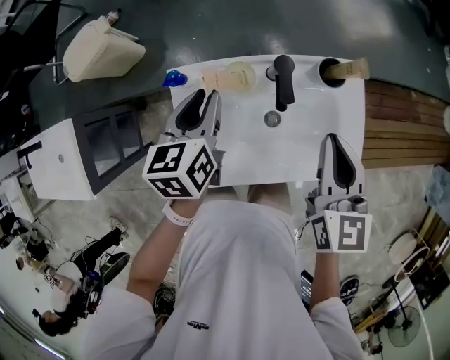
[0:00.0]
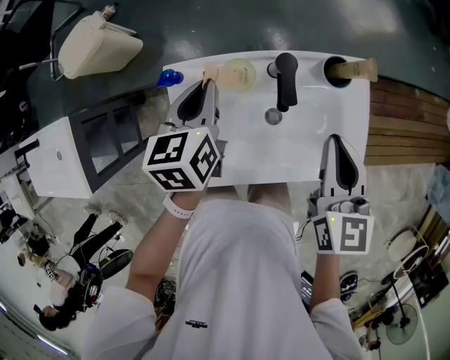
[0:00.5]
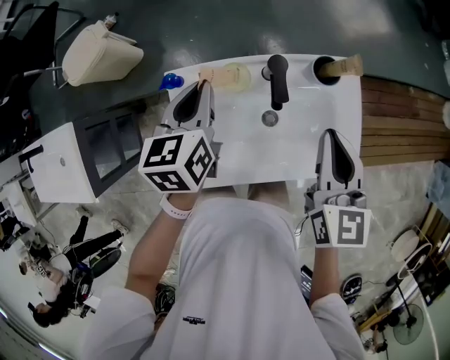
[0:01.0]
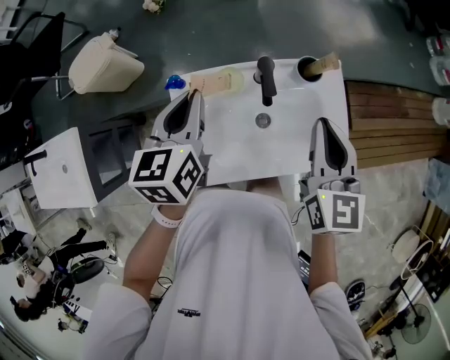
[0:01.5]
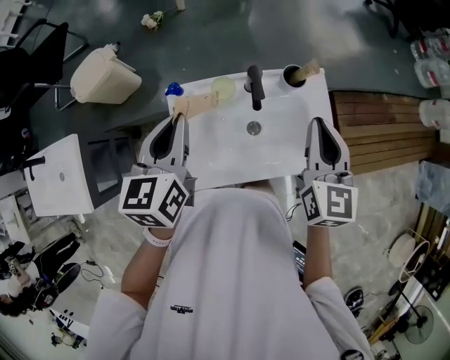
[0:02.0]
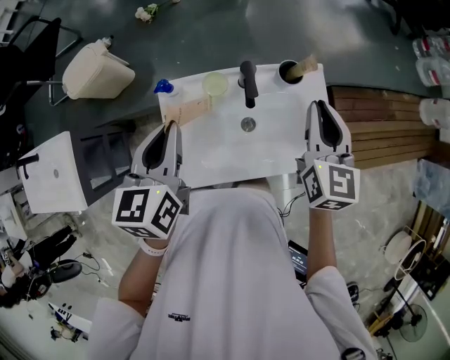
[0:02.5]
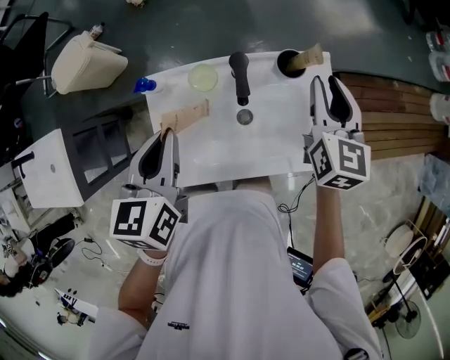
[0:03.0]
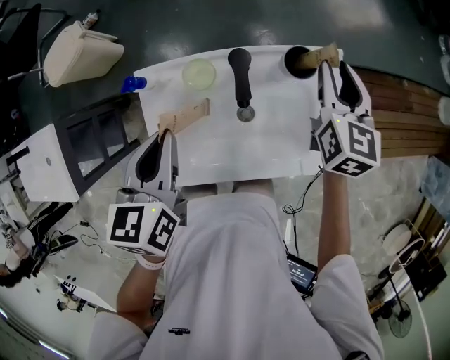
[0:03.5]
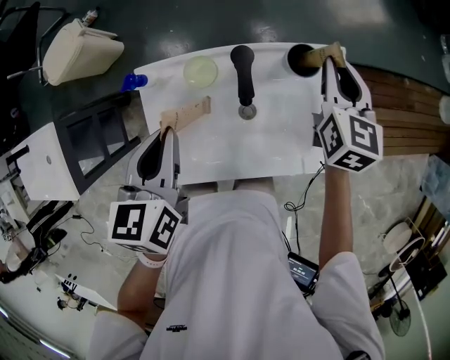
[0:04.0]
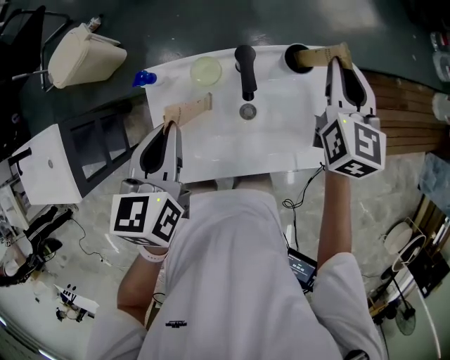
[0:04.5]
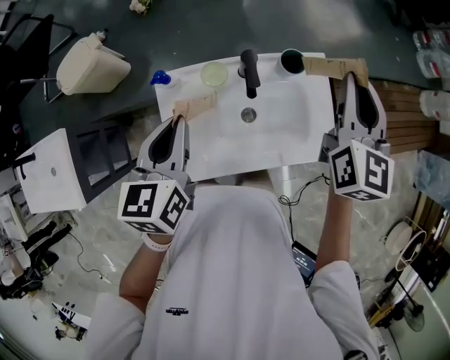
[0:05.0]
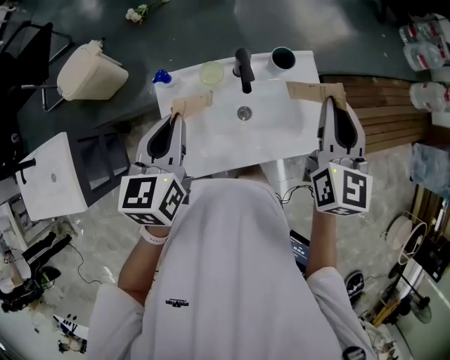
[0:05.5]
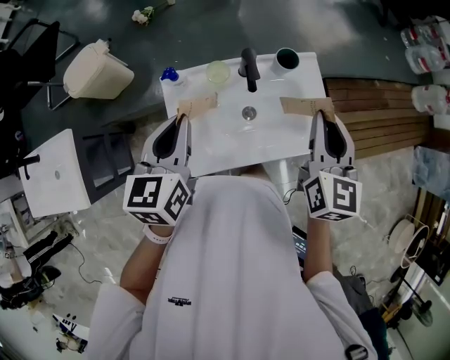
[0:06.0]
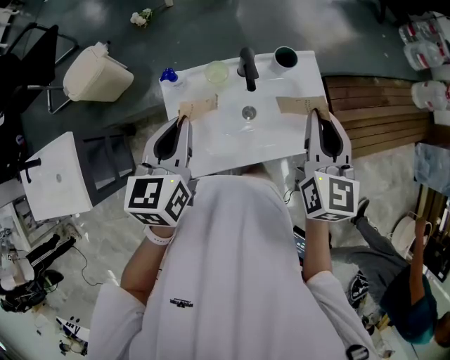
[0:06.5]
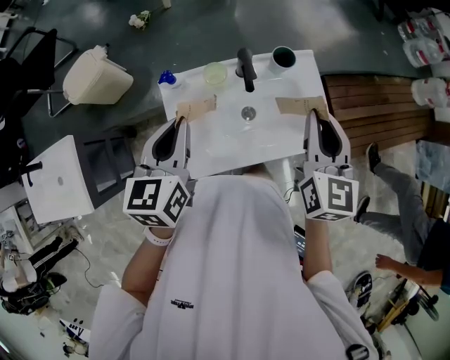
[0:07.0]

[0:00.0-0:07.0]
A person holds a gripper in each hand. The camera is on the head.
0:00.0 to 0:02.0: The left gripper travels upward and backward by about 15 cm, and closes its fingers; the right gripper shifts about 10 cm upward.
0:02.0 to 0:03.5: The right gripper travels forward and downward by about 20 cm, and opens its fingers, while the left gripper goes about 10 cm downward.
0:03.5 to 0:05.0: The left gripper goes about 5 cm upward. The right gripper heads upward and backward, covering roughly 20 cm.
0:05.0 to 0:07.0: The right gripper moves backward, approximately 15 cm.

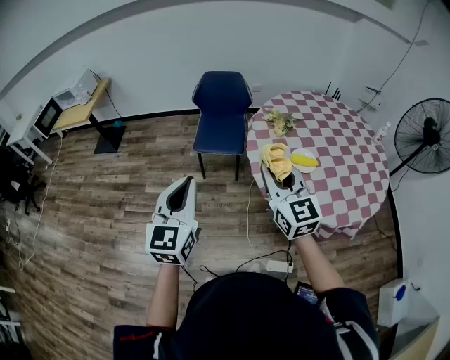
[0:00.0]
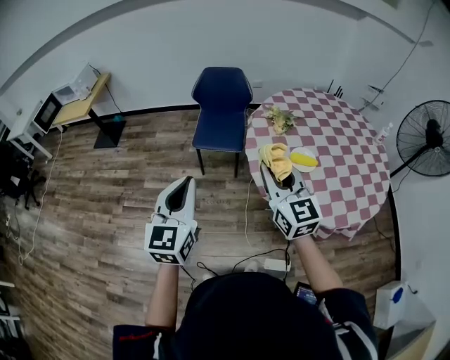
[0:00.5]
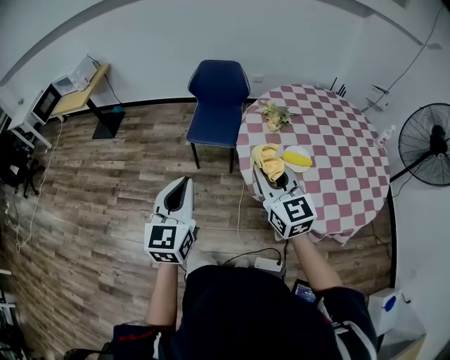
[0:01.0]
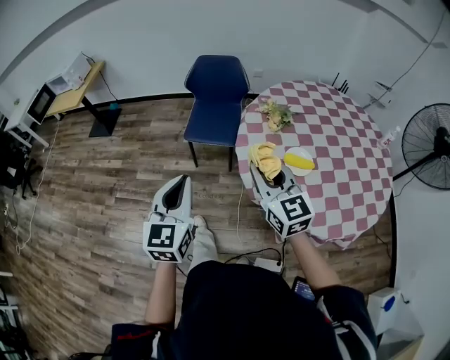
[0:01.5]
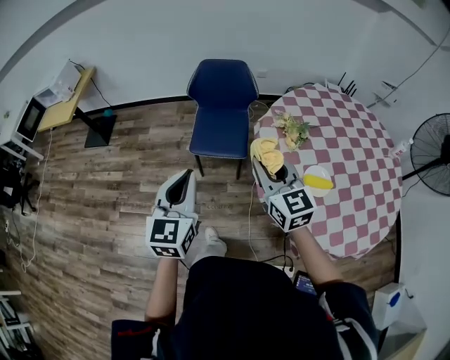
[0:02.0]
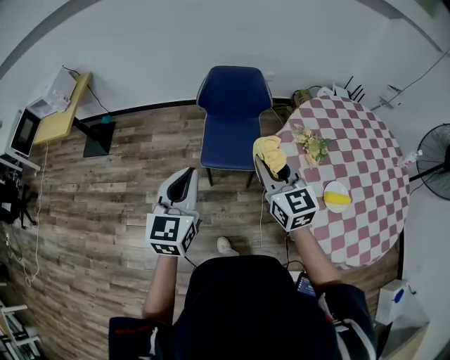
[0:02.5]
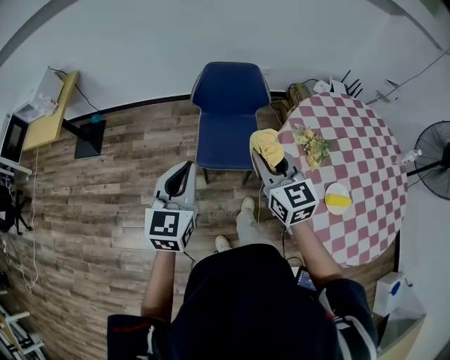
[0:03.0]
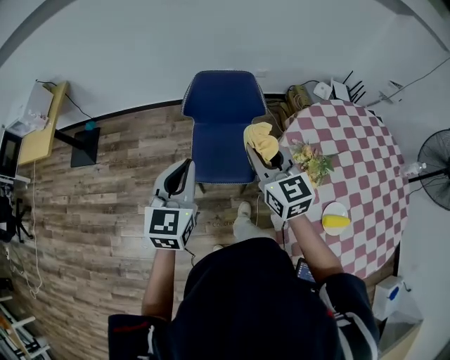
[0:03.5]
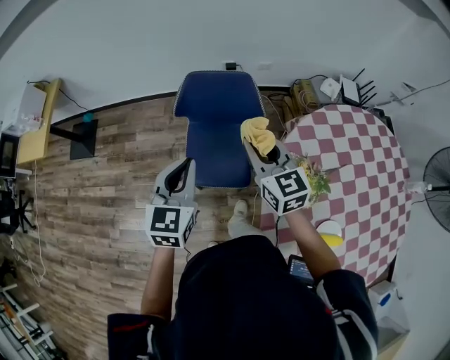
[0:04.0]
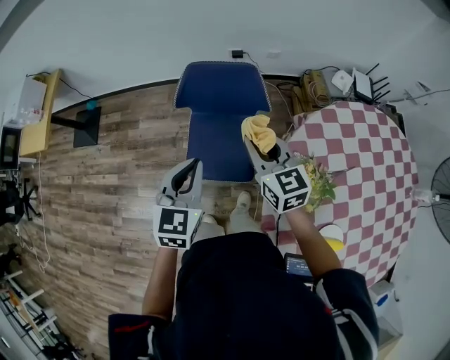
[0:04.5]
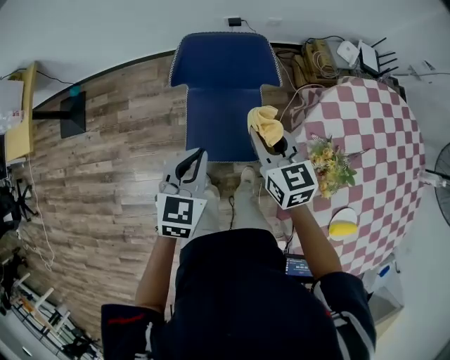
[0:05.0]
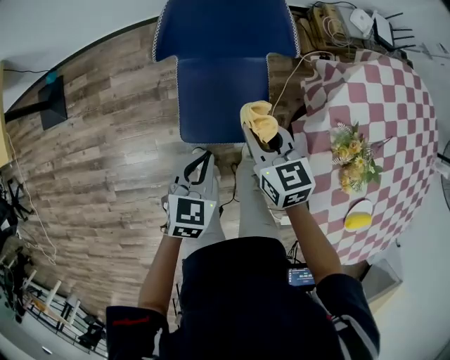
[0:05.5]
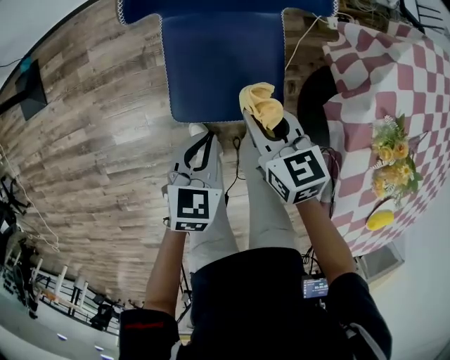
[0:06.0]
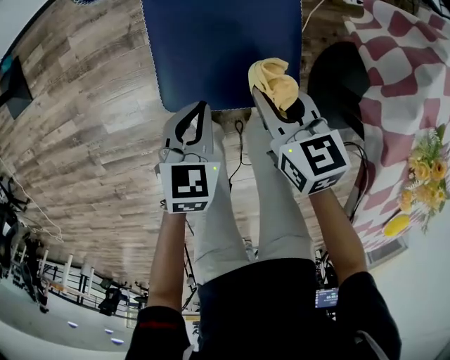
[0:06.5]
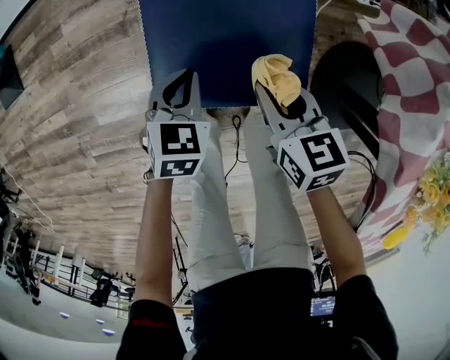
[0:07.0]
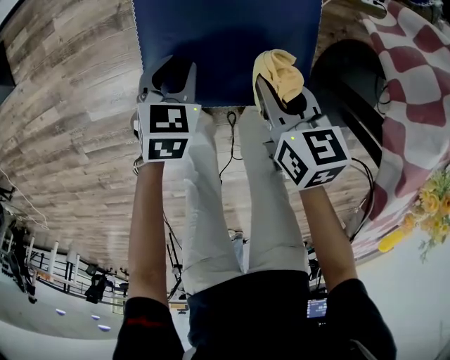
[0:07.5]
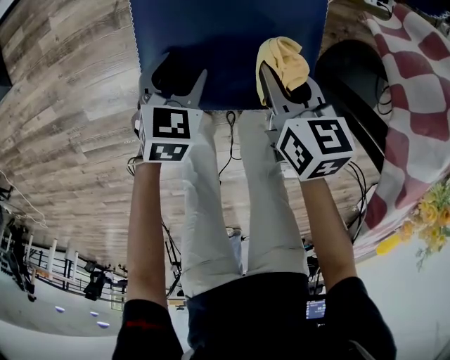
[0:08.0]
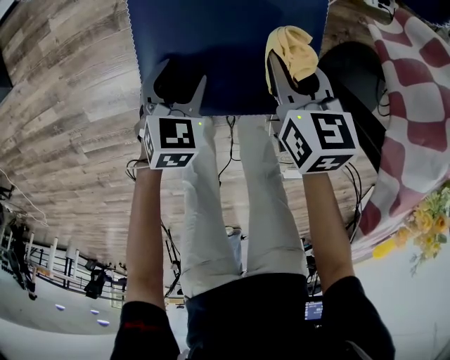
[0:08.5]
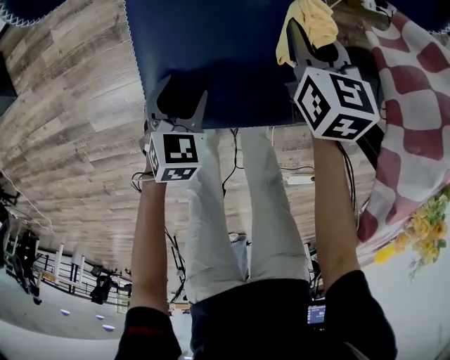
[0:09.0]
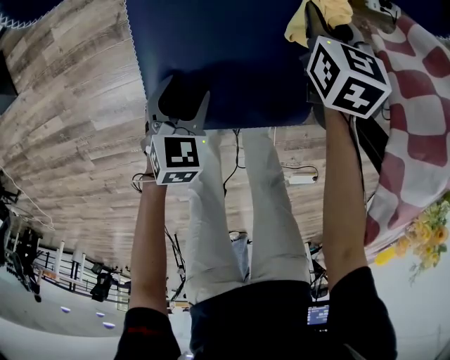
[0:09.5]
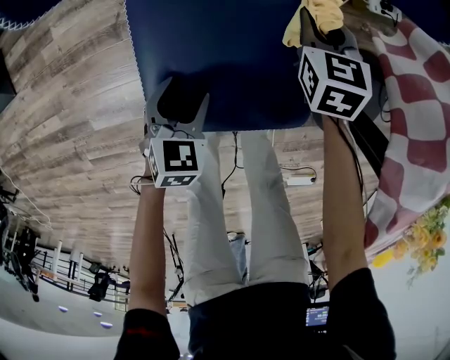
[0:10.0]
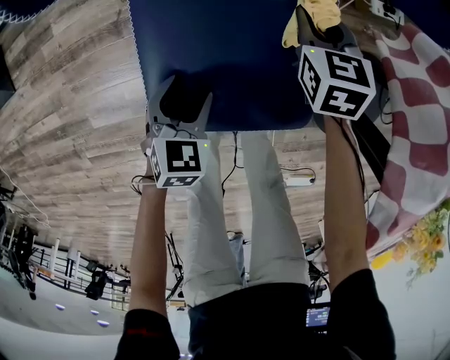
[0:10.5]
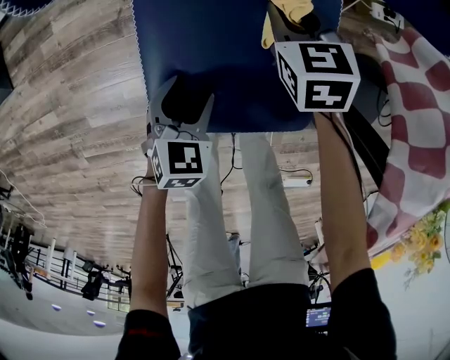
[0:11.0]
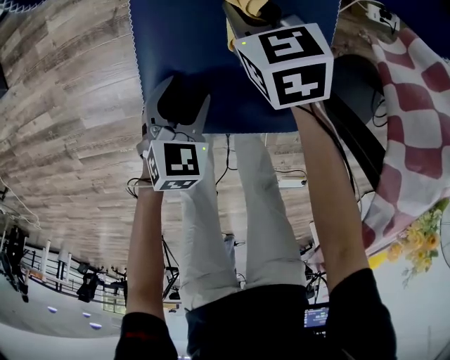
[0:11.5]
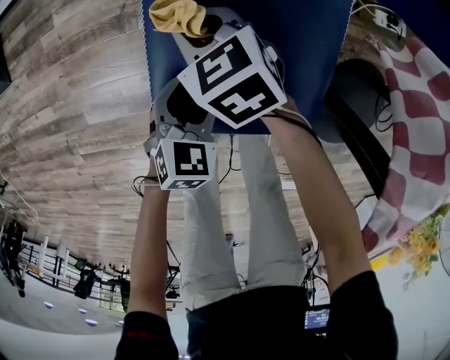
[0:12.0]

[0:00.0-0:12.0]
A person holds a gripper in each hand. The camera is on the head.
0:00.0 to 0:02.0: The grippers both shift forward by approximately 25 cm.
0:02.0 to 0:04.0: Both grippers move forward, about 40 cm.
0:04.0 to 0:06.0: The two grippers go approximately 35 cm downward. The left gripper changes its angle by about 30 degrees. Meanwhile the right gripper turns by roughly 30 degrees.
0:06.0 to 0:08.0: The grippers both shift downward by about 20 cm. The left gripper opens its fingers.
0:08.0 to 0:10.0: The right gripper is displaced forward by about 15 cm, and changes its angle by roughly 30 degrees.
0:10.0 to 0:12.0: The right gripper changes place by approximately 25 cm, and changes its angle by some 40 degrees.

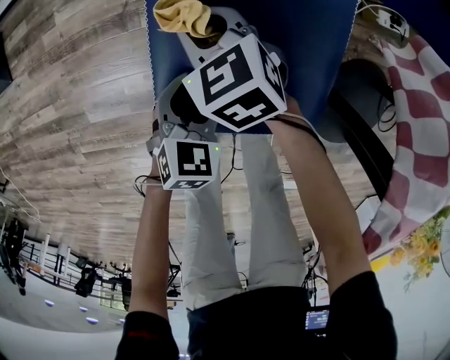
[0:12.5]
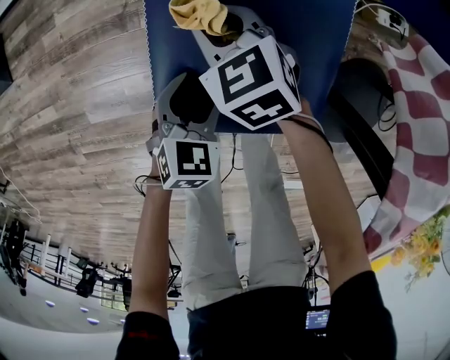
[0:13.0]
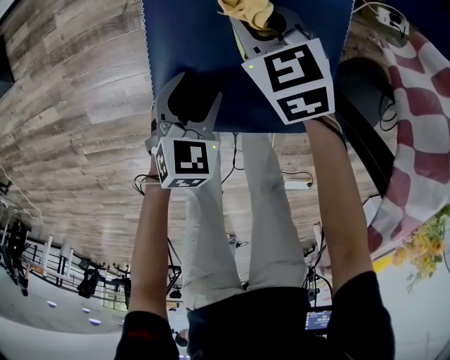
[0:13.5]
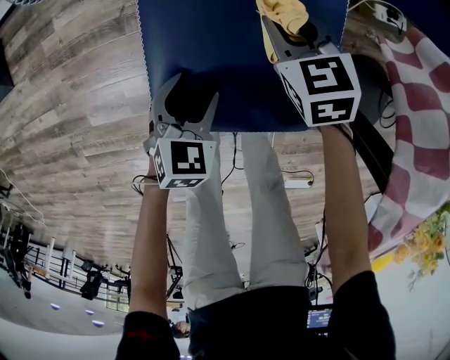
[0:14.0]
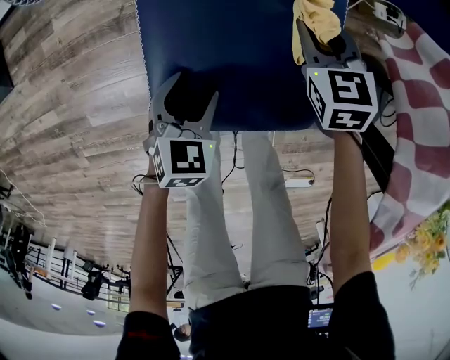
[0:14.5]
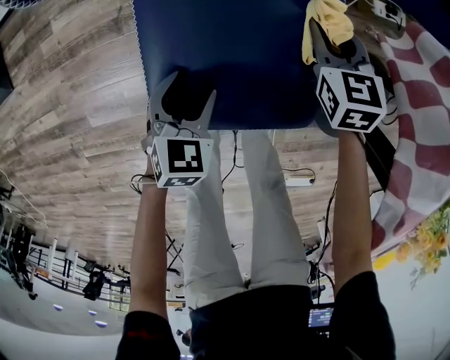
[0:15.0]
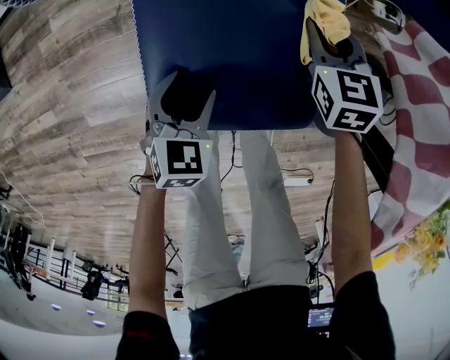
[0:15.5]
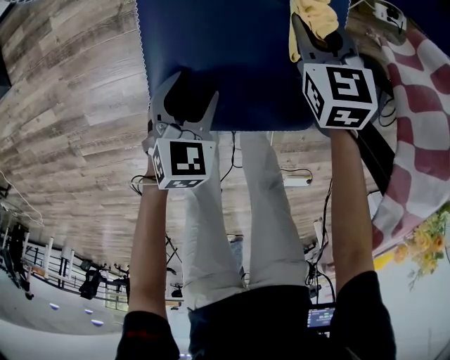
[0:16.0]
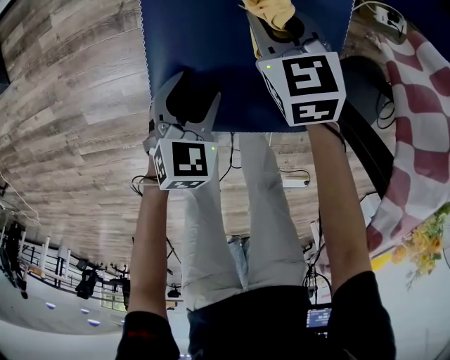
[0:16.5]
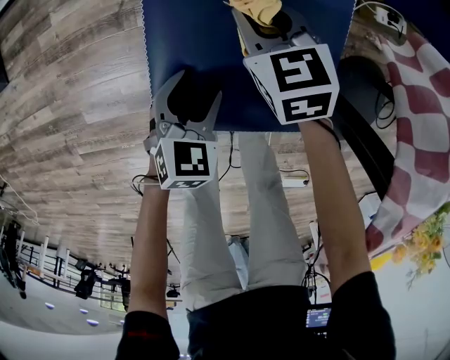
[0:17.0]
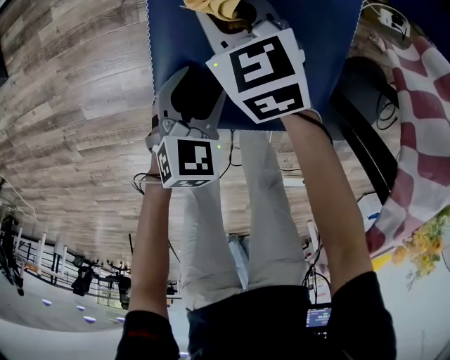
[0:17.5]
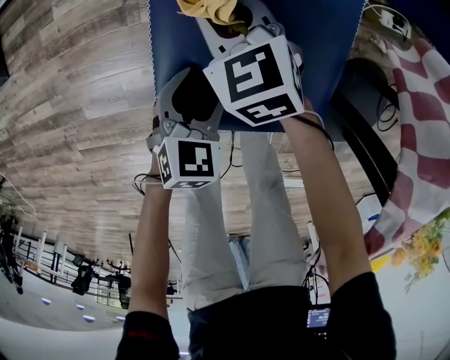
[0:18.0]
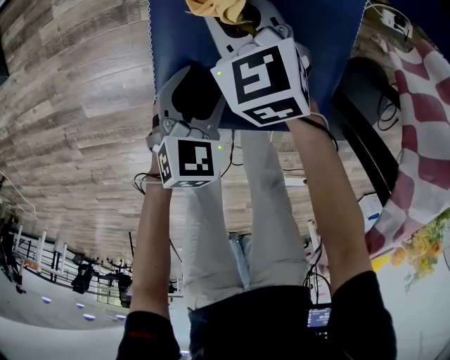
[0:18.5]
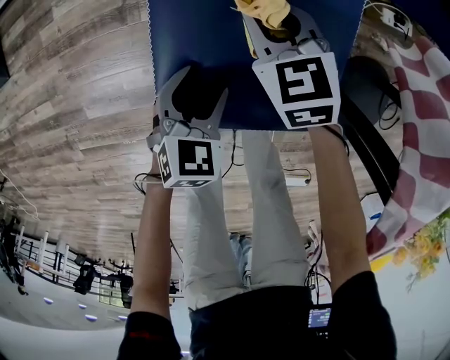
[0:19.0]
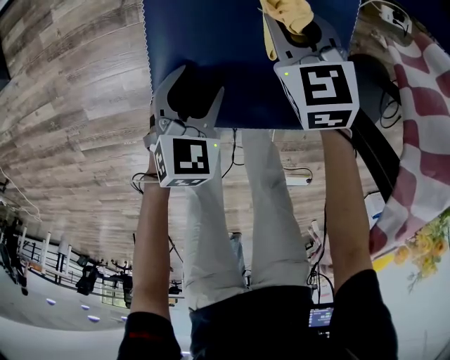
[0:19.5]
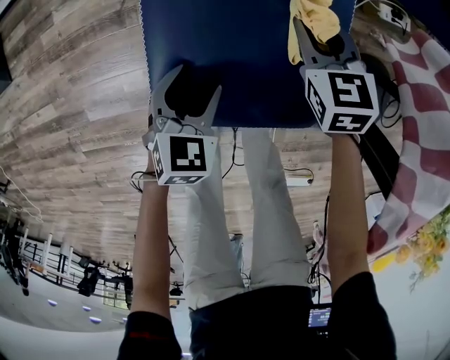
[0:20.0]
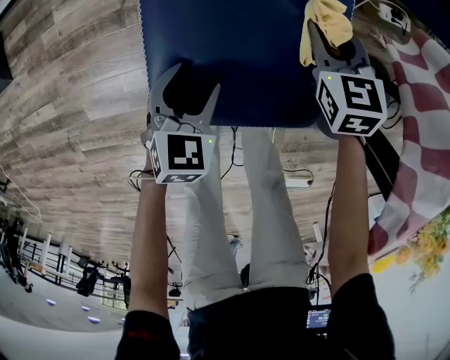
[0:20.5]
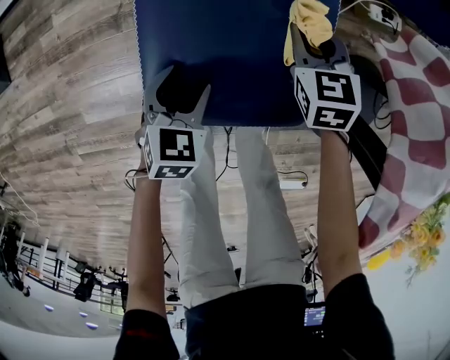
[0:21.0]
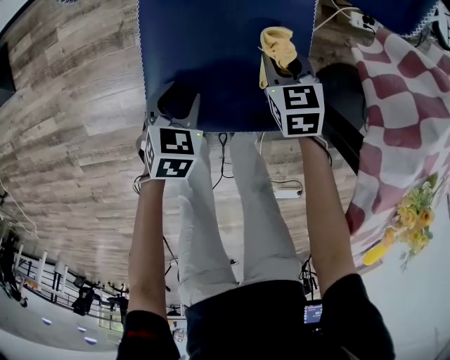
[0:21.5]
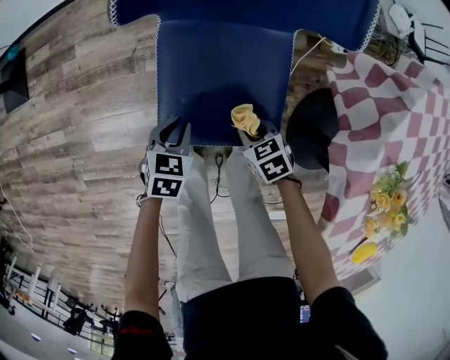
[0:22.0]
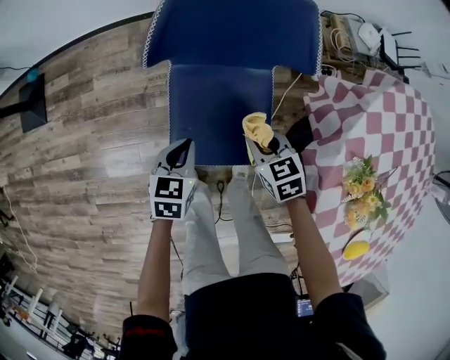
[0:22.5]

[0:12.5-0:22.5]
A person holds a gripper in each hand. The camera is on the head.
0:12.5 to 0:14.5: The right gripper travels to the right by some 20 cm, and rotates roughly 30 degrees.
0:14.5 to 0:16.5: The right gripper is displaced to the left by about 10 cm.
0:16.5 to 0:18.5: The right gripper moves to the left, about 10 cm.
0:18.5 to 0:20.5: The right gripper moves to the right, some 20 cm, and swivels roughly 20 degrees.
0:20.5 to 0:22.5: The right gripper heads upward and backward, covering roughly 20 cm, while the left gripper heads upward, covering roughly 20 cm, and closes up.
